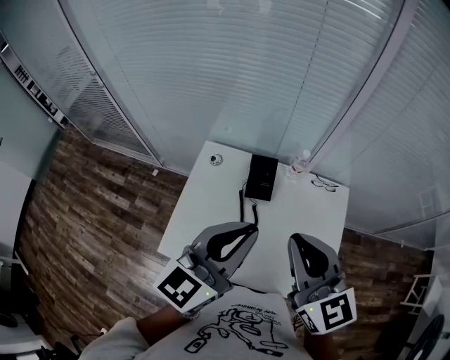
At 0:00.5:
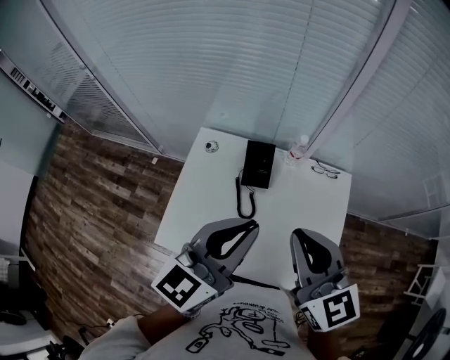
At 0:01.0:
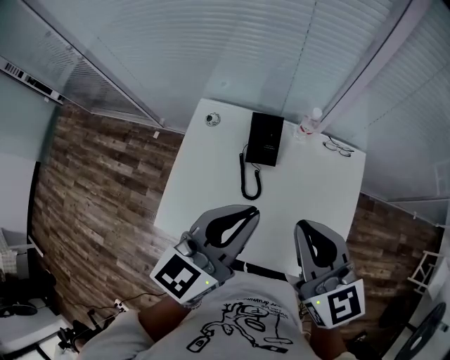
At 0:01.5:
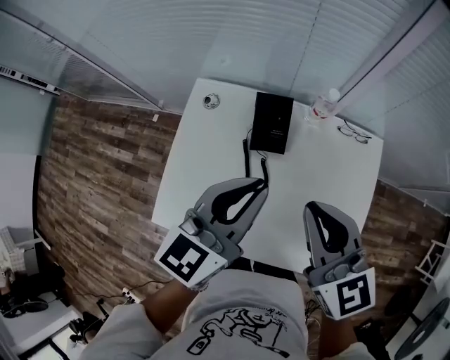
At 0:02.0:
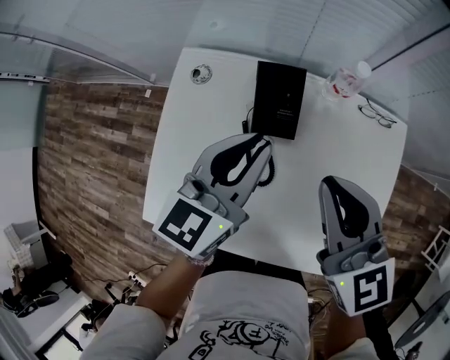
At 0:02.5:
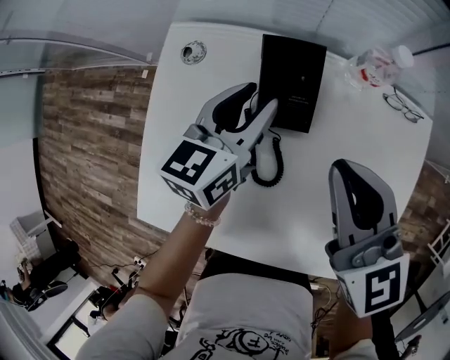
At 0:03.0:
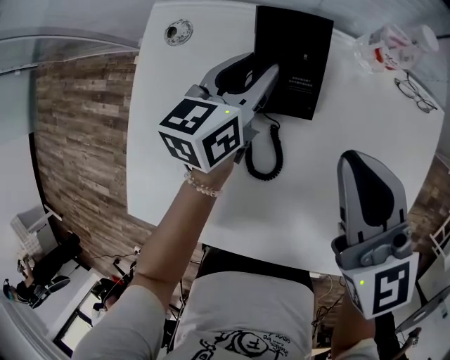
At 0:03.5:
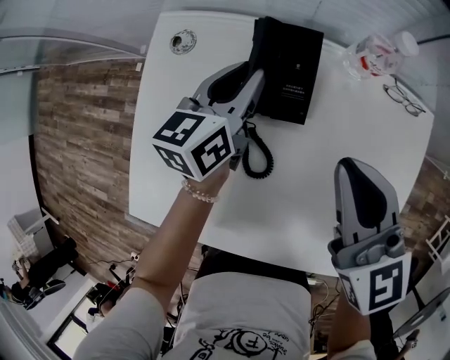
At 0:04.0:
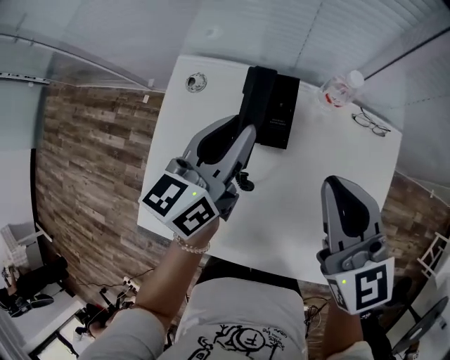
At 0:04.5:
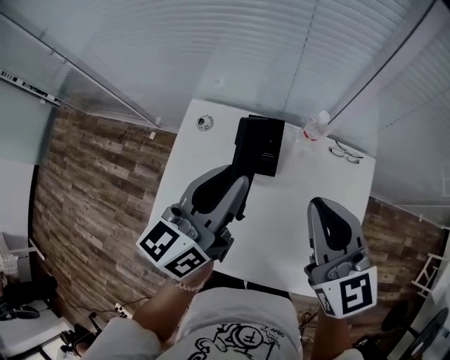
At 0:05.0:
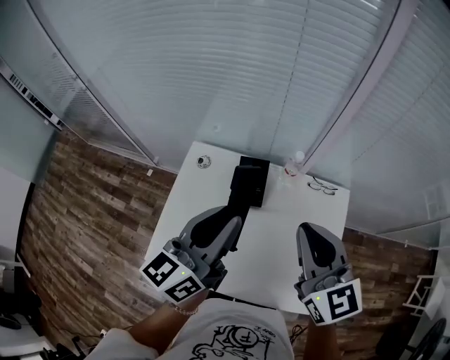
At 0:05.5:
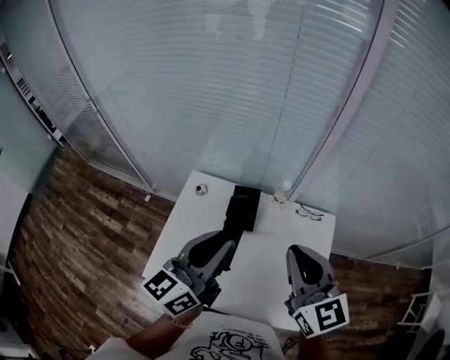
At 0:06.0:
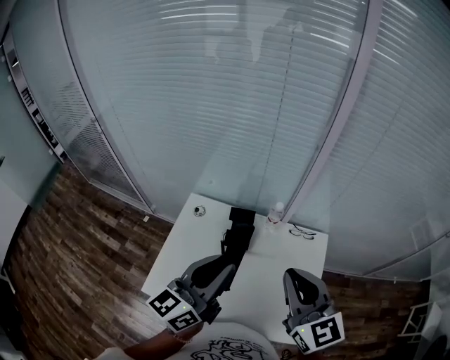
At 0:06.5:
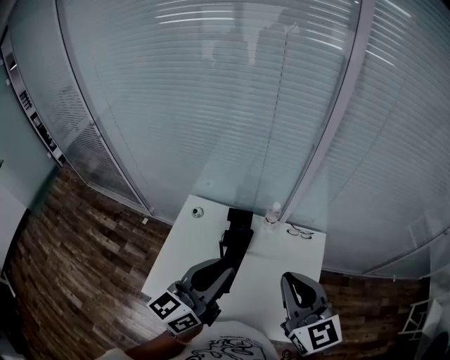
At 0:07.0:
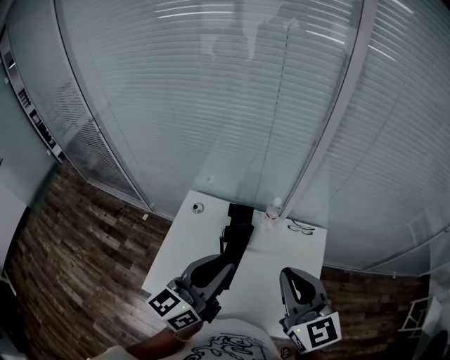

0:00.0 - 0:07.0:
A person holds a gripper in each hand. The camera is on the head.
0:00.0 - 0:02.0: Both grippers move downward and forward, about 30 cm.
0:02.0 - 0:03.5: The left gripper goes about 20 cm downward and forward, while the right gripper heads downward, covering some 10 cm.
0:03.5 - 0:05.0: The right gripper heads upward, covering roughly 25 cm; the left gripper moves upward and backward, about 40 cm, and turns by approximately 20 degrees.
0:05.0 - 0:07.0: The left gripper moves backward, roughly 5 cm. Meanwhile the right gripper goes roughly 10 cm backward and upward.

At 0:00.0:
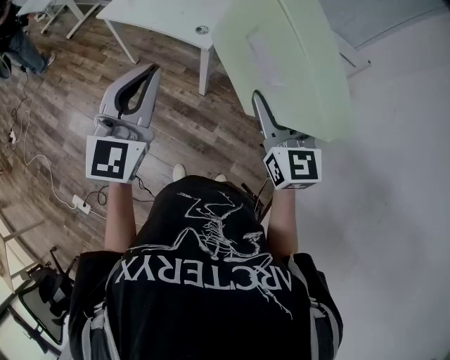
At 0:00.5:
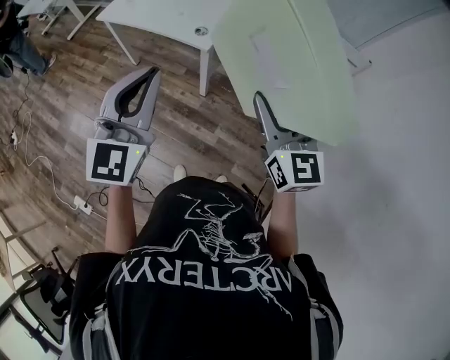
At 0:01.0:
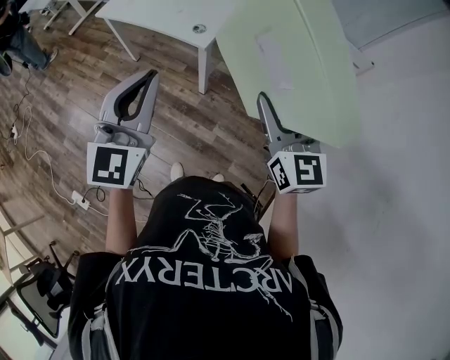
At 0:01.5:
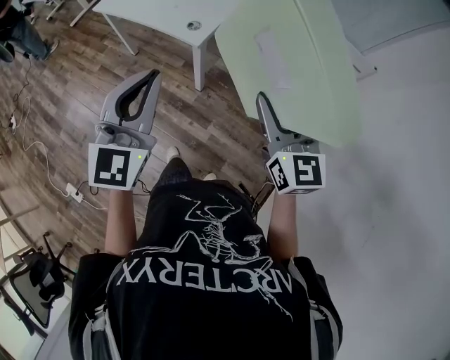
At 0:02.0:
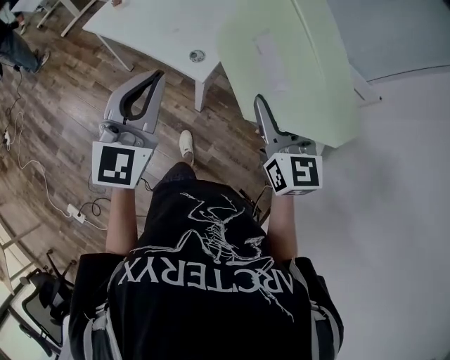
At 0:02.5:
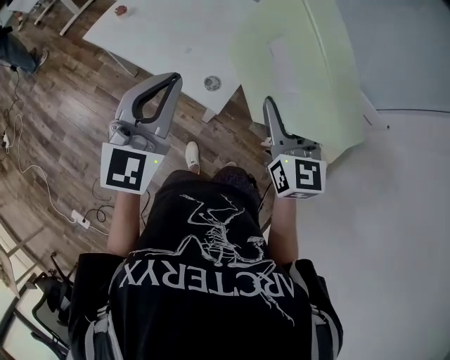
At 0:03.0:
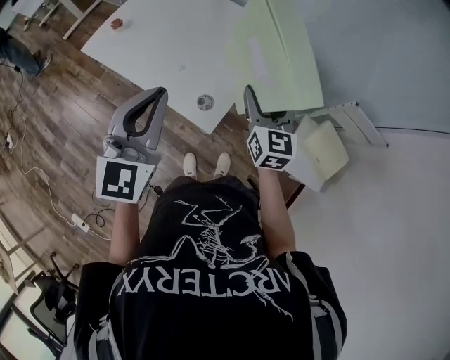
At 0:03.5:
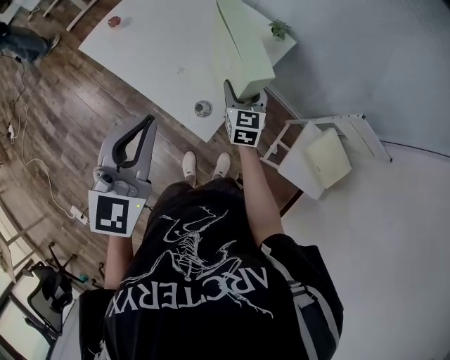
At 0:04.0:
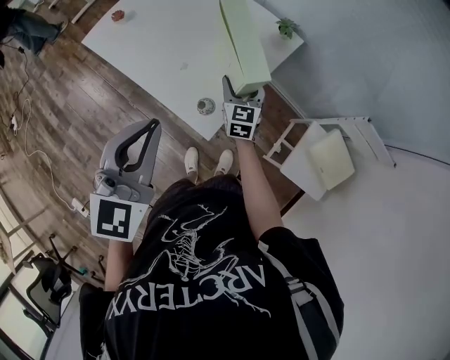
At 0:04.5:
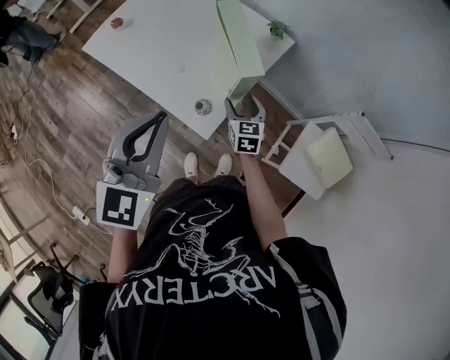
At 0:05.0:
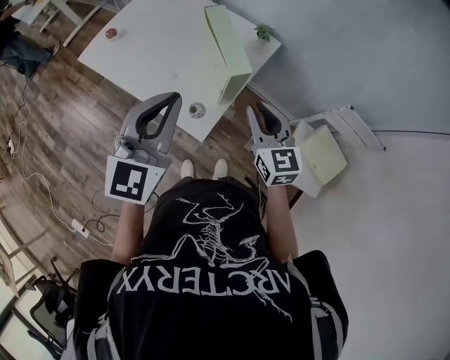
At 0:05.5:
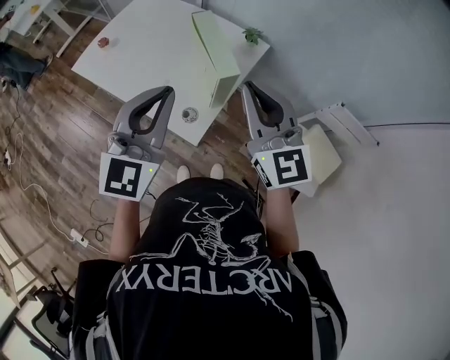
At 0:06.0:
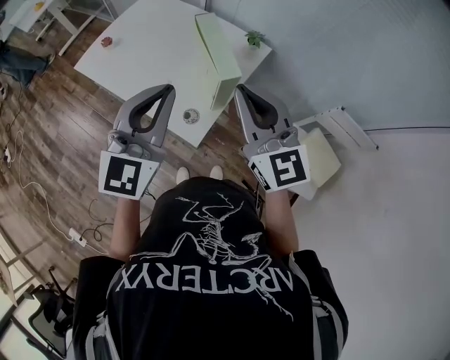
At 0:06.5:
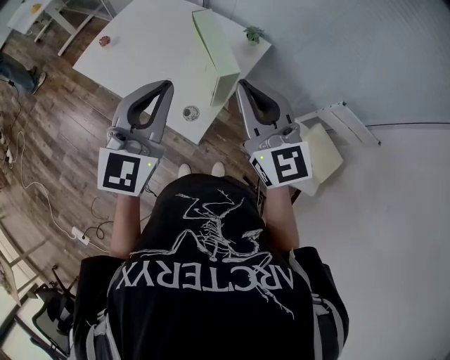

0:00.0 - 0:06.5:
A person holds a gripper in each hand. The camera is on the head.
0:00.0 - 0:02.0: The two grippers go approximately 20 cm forward.
0:02.0 - 0:04.5: The left gripper travels forward by roughly 20 cm, while the right gripper heads forward and downward, covering roughly 40 cm, and changes its angle by some 30 degrees.
0:04.5 - 0:06.5: The right gripper goes approximately 35 cm upward, tilts its fingers some 30 degrees upward, and closes up. The left gripper moves about 5 cm.

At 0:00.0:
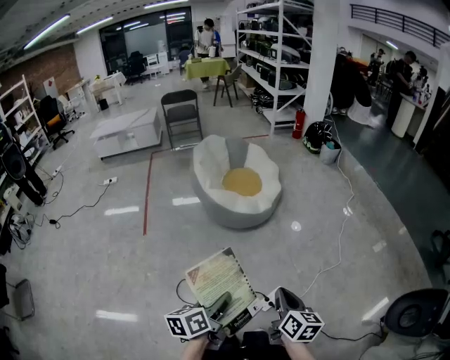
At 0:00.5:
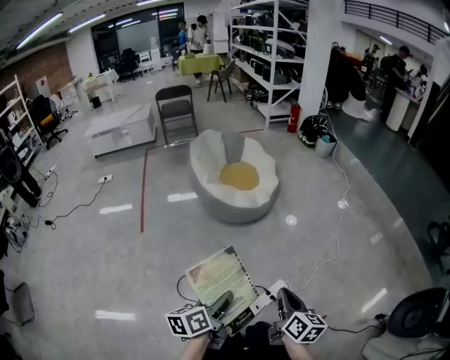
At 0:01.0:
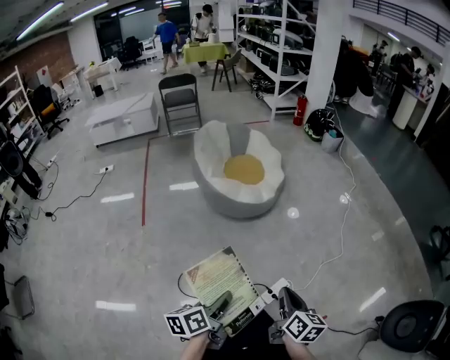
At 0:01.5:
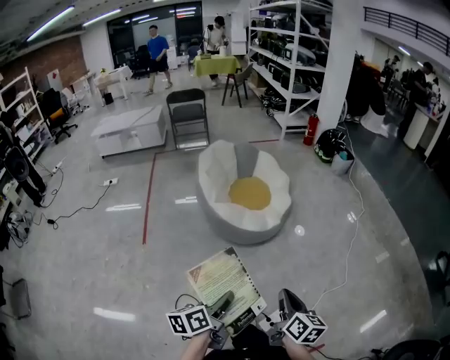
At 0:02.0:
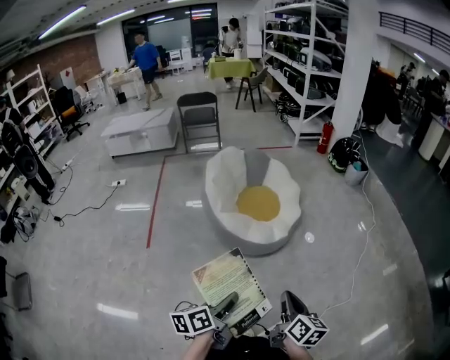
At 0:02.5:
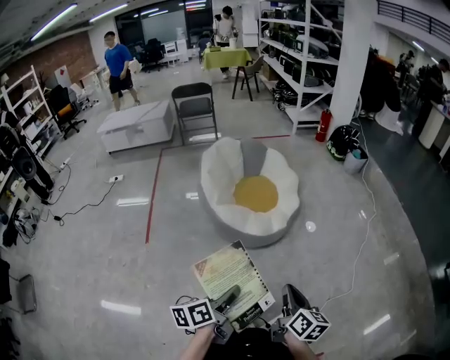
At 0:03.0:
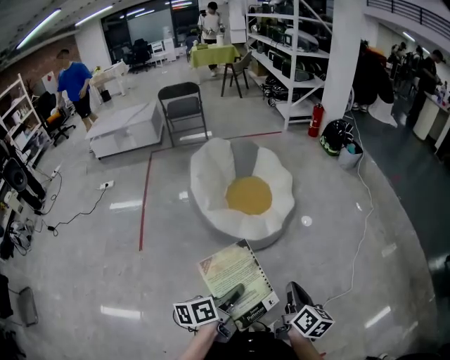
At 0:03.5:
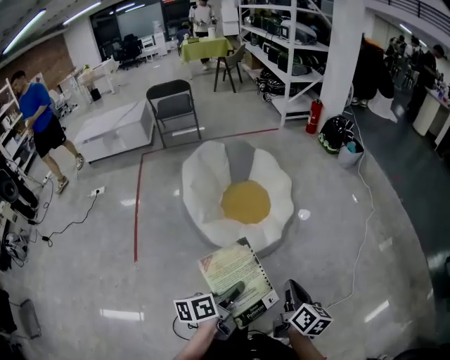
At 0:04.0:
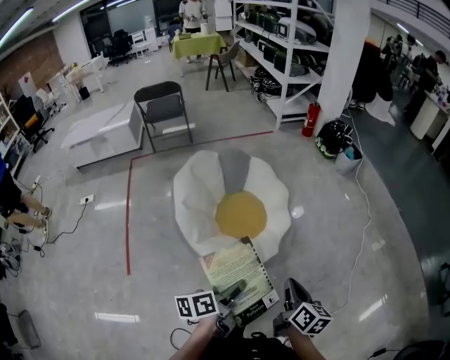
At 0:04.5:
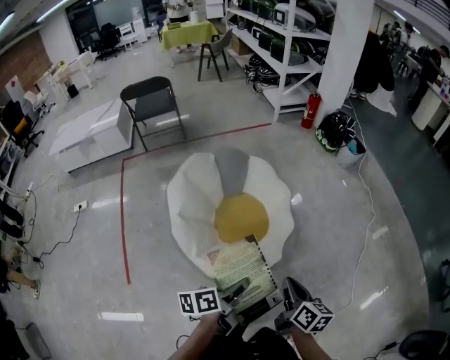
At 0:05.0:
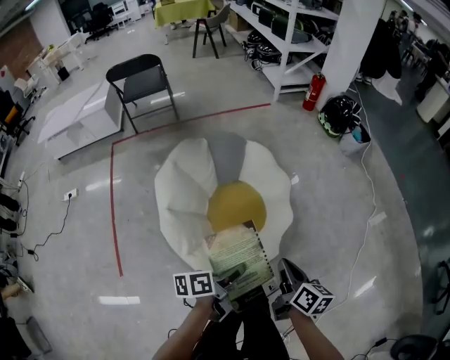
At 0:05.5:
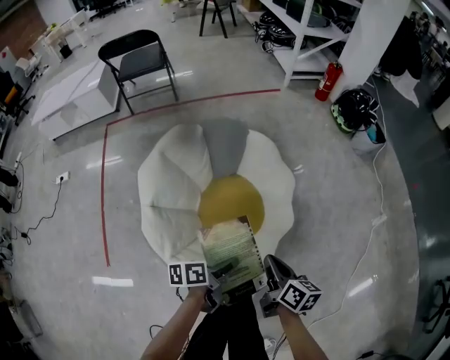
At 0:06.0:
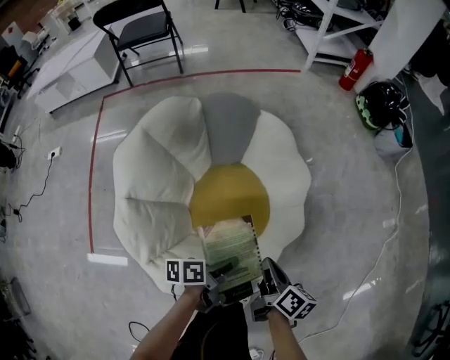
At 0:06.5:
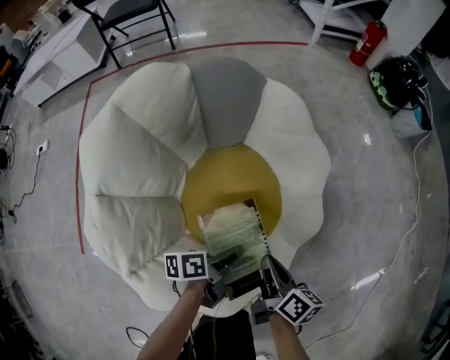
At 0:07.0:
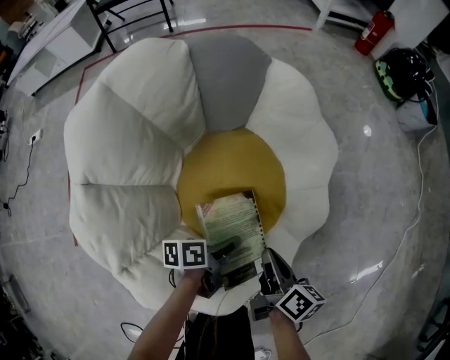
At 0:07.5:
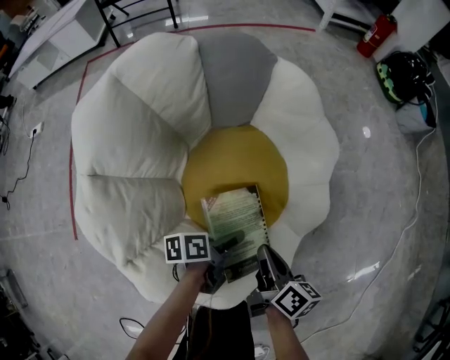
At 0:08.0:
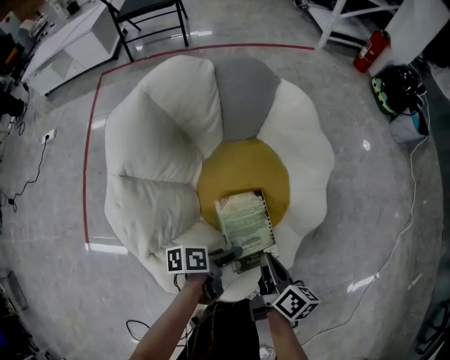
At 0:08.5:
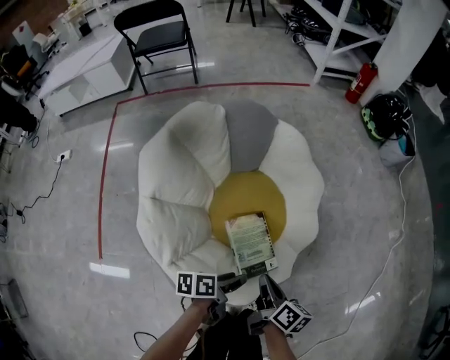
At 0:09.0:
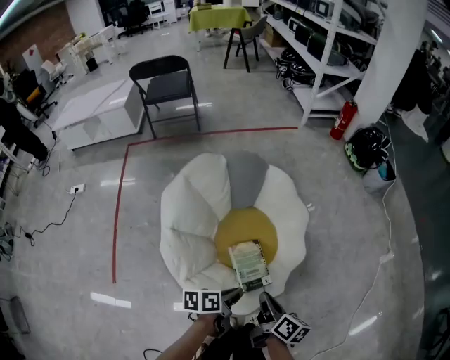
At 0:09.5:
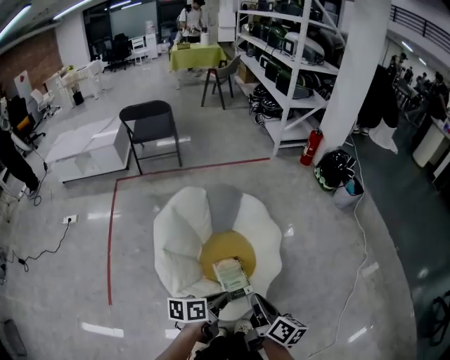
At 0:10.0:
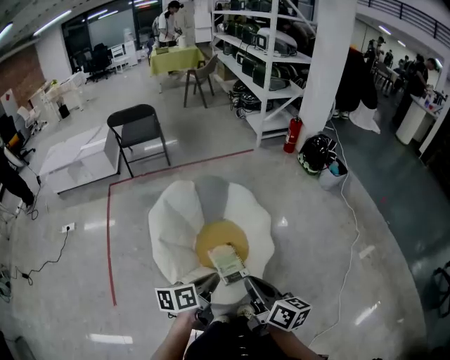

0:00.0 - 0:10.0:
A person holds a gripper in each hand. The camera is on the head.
0:00.0 - 0:02.0: The right gripper ends up roughly 25 cm from where it was.
0:02.0 - 0:04.0: The right gripper moves about 35 cm.
0:04.0 - 0:06.0: The right gripper shifts by roughly 50 cm, and changes its angle by roughly 20 degrees.
0:06.0 - 0:08.0: The right gripper goes approximately 10 cm downward.
0:08.0 - 0:10.0: The right gripper heads upward, covering approximately 50 cm, and rotates roughly 20 degrees.

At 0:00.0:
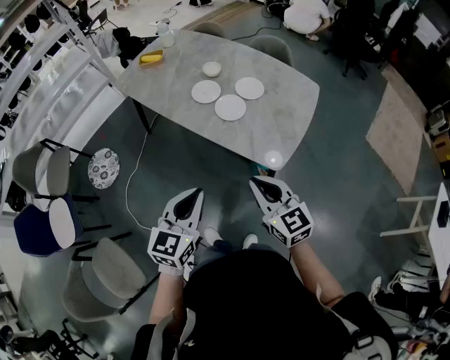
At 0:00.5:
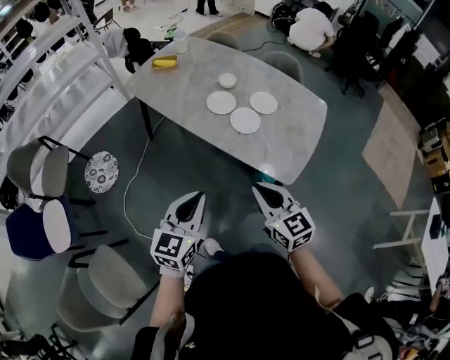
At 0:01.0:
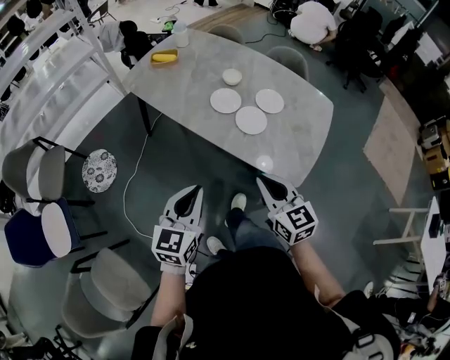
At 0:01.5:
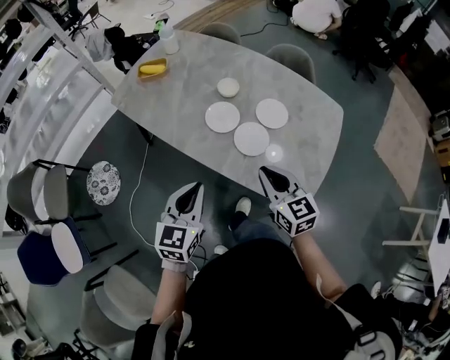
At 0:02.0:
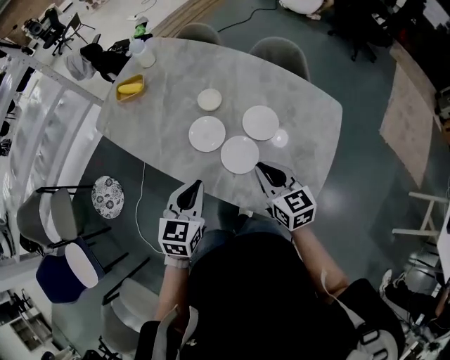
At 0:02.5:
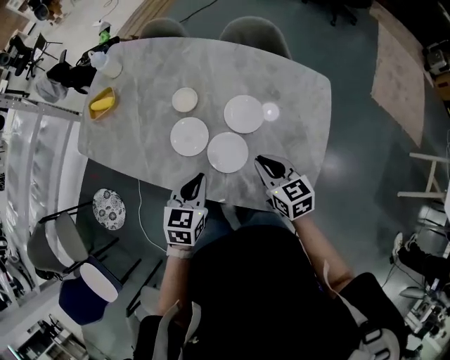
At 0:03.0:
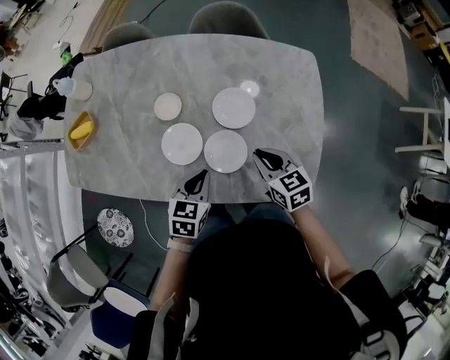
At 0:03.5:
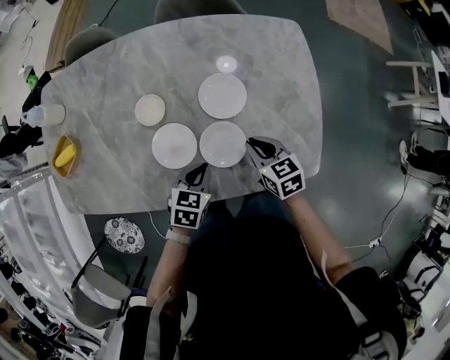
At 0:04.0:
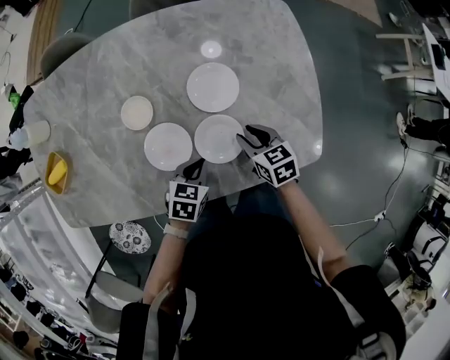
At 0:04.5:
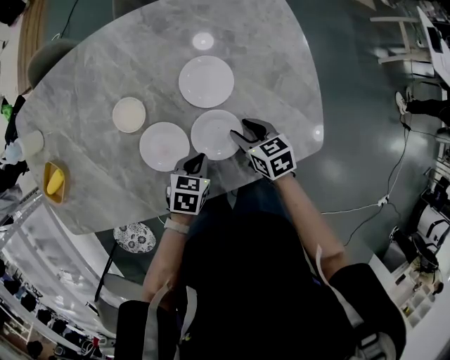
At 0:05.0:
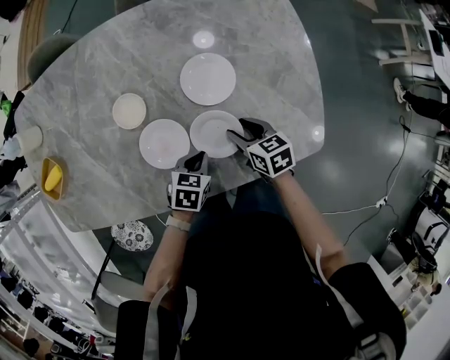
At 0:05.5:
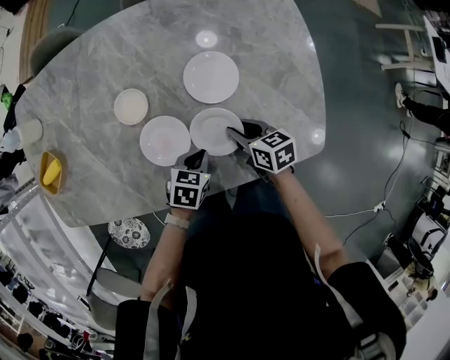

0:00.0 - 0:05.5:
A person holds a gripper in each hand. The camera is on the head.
0:00.0 - 0:02.0: Both grippers move forward, some 35 cm.
0:02.0 - 0:03.5: The two grippers go approximately 20 cm downward. The right gripper rotates about 40 degrees, while the left gripper changes its angle by approximately 50 degrees.
0:03.5 - 0:05.5: Both grippers move downward, some 5 cm.
